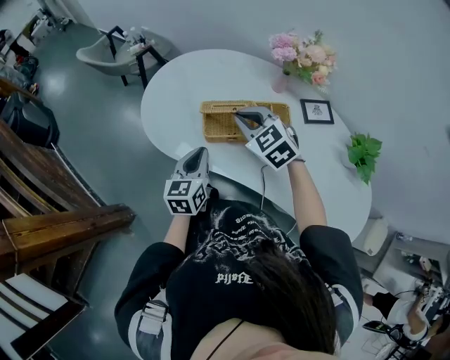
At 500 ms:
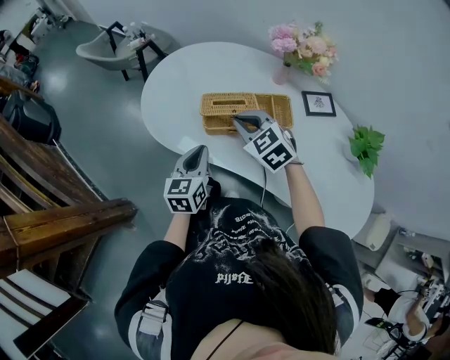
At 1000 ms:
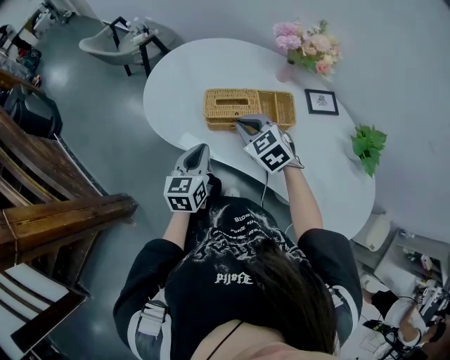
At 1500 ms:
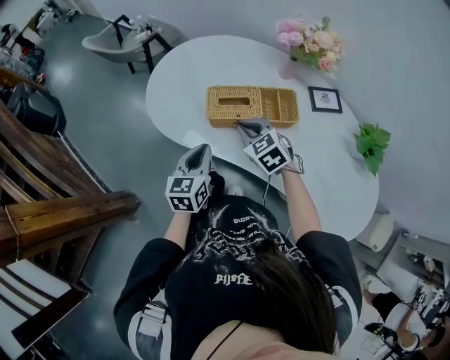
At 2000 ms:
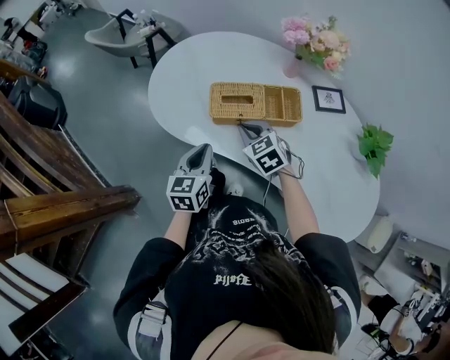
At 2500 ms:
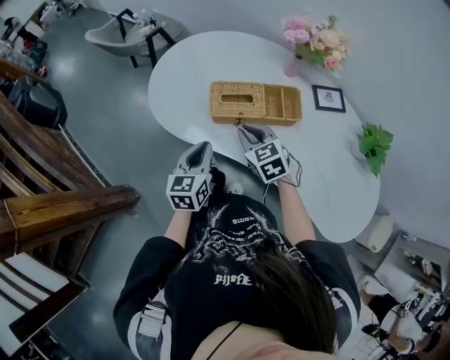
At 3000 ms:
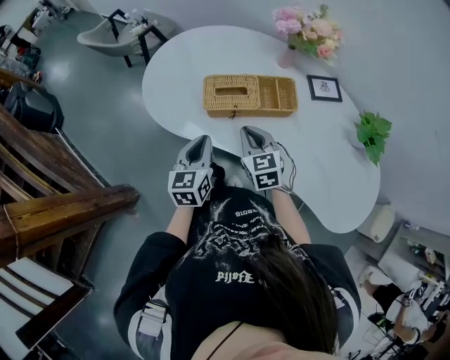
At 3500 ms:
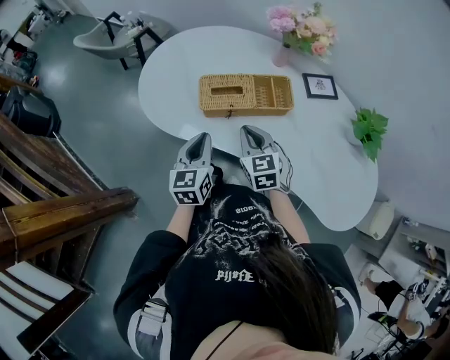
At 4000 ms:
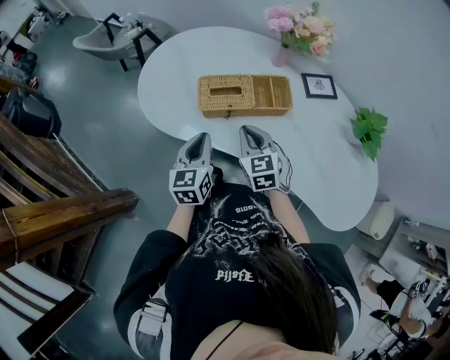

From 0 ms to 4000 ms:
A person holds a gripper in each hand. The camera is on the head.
From 0 ms to 2000 ms: The right gripper is displaced downward and backward by roughly 15 cm.
From 2000 ms to 4000 ms: The right gripper ends up approximately 5 cm from where it was, and rotates roughly 20 degrees.

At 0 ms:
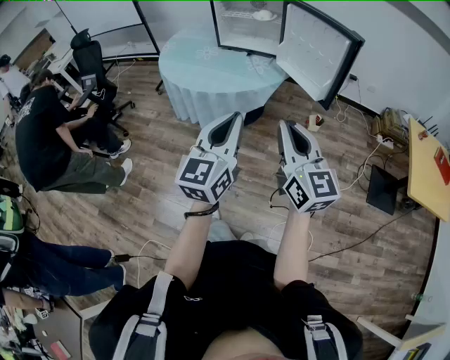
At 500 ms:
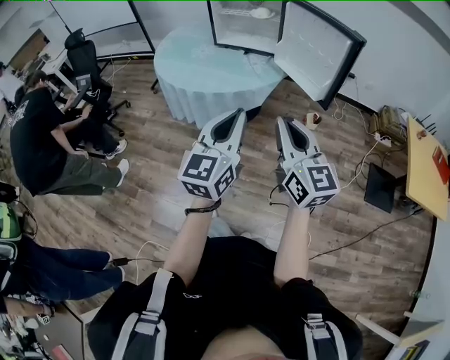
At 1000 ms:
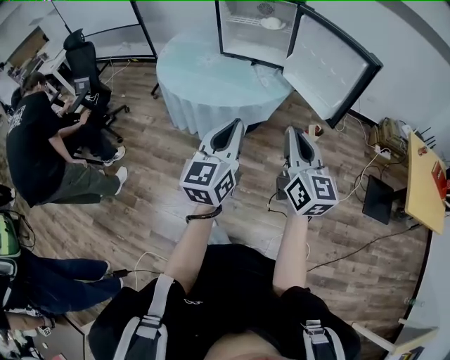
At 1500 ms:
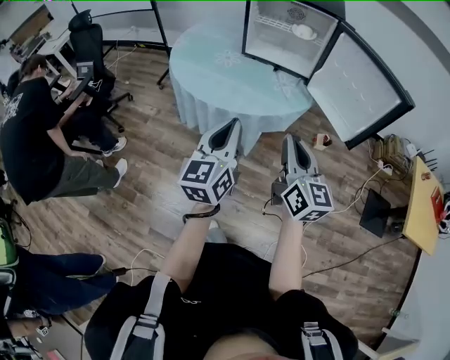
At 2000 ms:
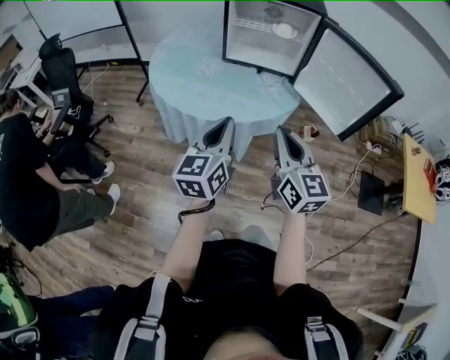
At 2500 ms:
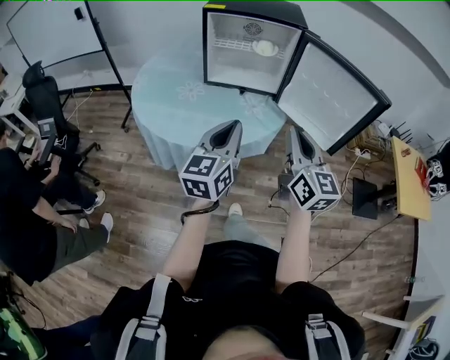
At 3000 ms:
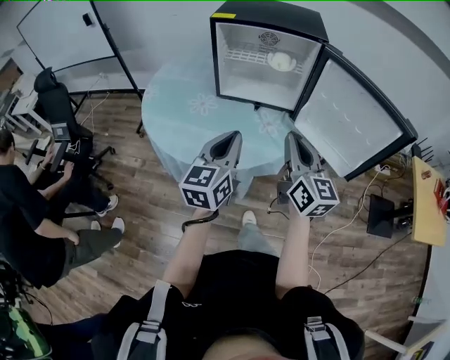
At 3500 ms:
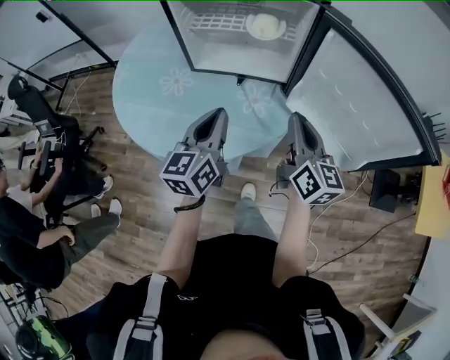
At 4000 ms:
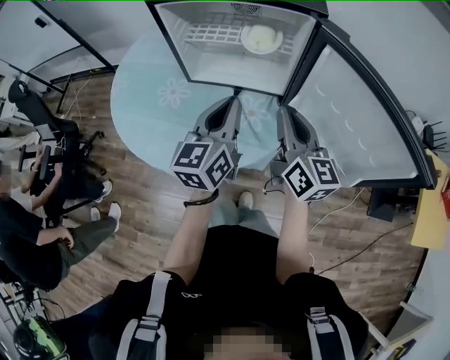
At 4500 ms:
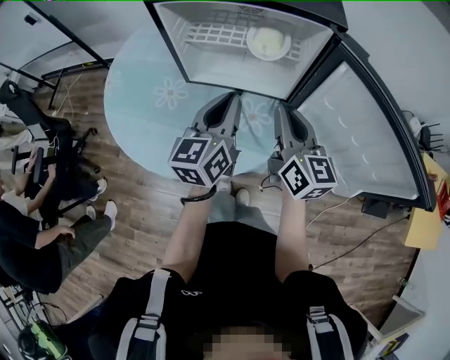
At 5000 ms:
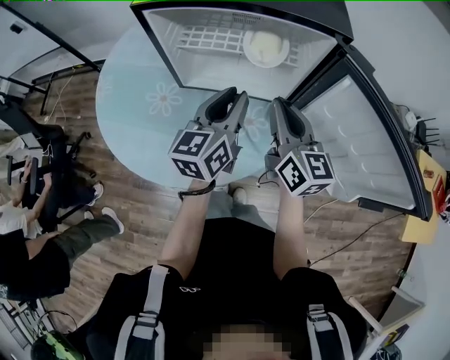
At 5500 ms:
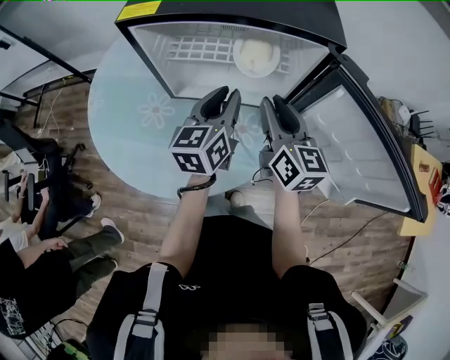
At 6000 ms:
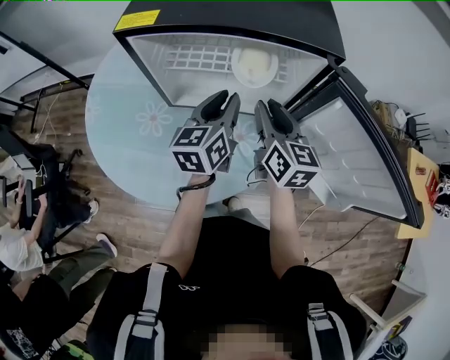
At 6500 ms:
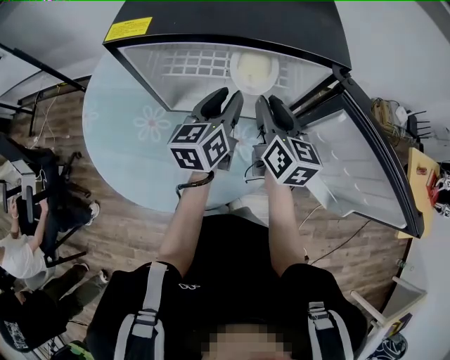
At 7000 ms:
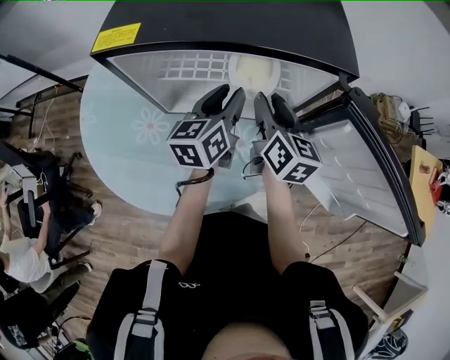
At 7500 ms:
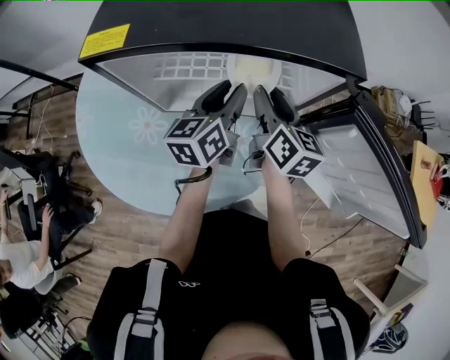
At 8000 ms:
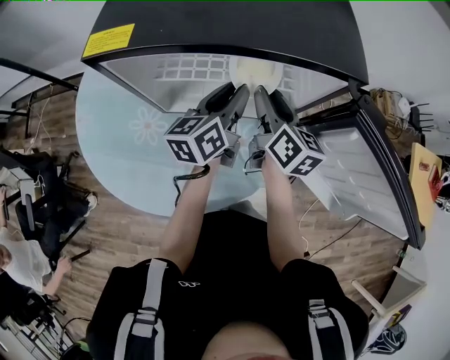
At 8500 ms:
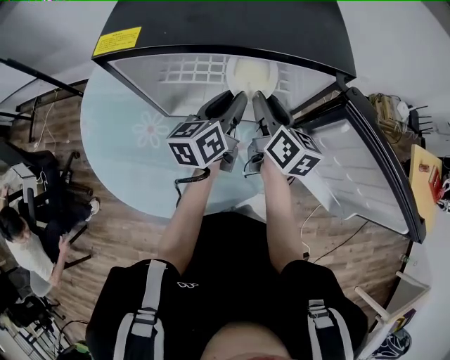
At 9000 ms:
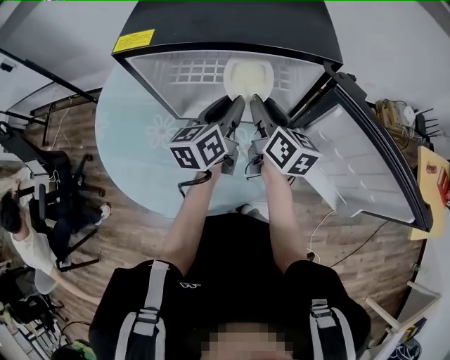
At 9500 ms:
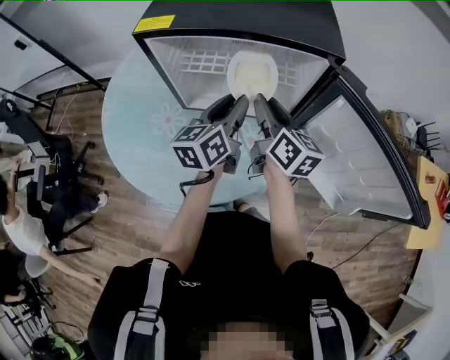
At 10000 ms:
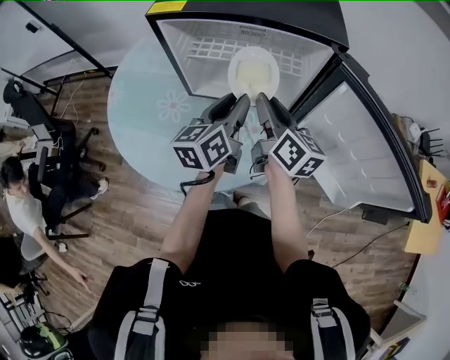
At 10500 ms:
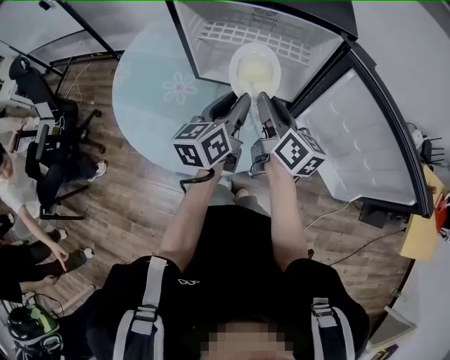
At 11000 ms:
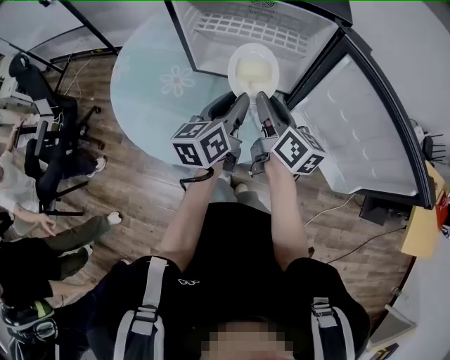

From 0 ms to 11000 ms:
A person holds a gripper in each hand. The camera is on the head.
From 0 ms to 2000 ms: The grippers both shift forward and to the left by some 30 cm.
From 2000 ms to 3500 ms: The right gripper goes about 35 cm forward and to the right. The left gripper goes approximately 30 cm forward.
From 3500 ms to 5500 ms: The two grippers go some 20 cm forward. The right gripper opens its fingers.
From 5500 ms to 7500 ms: The left gripper is displaced forward by about 10 cm; the right gripper shifts some 10 cm forward and downward.
From 7500 ms to 9000 ms: The grippers both shift backward by some 5 cm.
From 9000 ms to 11000 ms: The two grippers go about 15 cm backward.

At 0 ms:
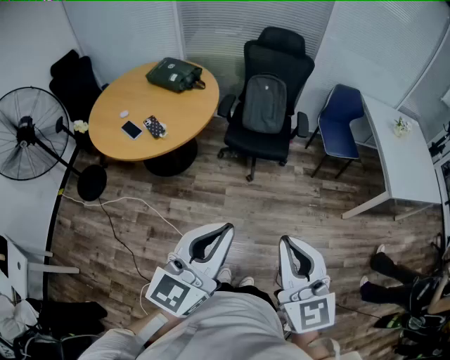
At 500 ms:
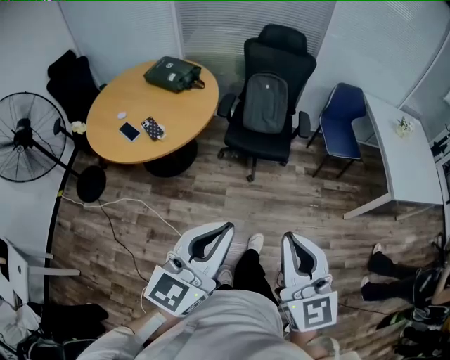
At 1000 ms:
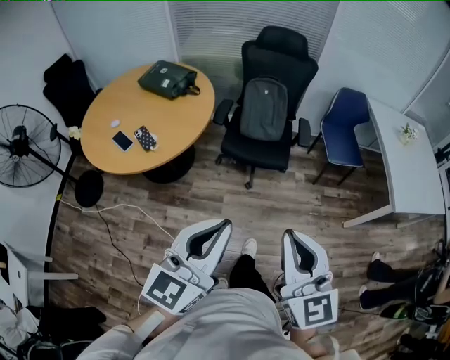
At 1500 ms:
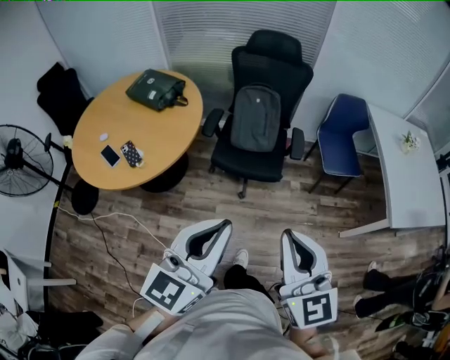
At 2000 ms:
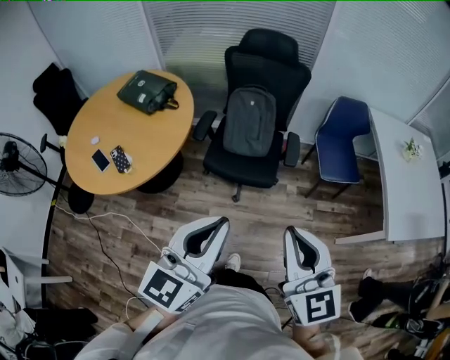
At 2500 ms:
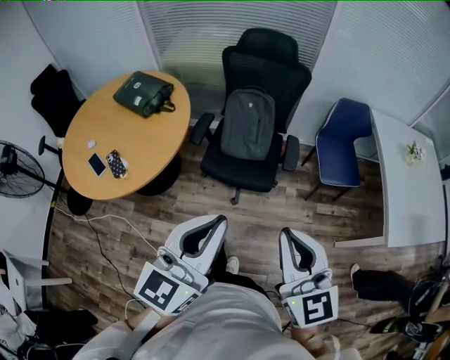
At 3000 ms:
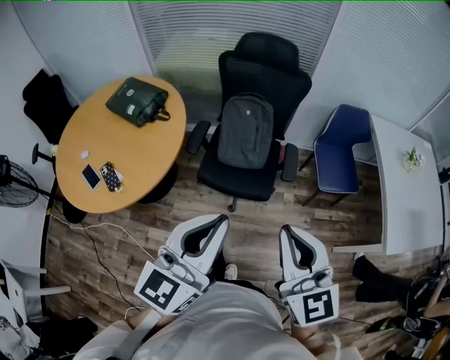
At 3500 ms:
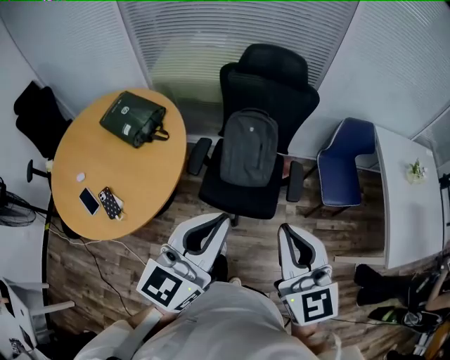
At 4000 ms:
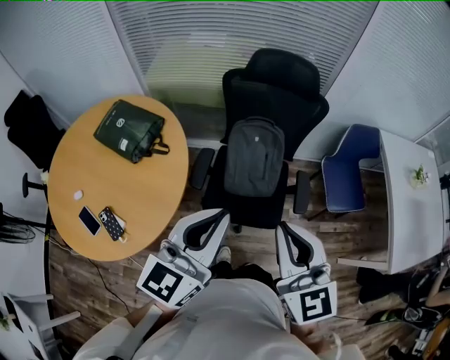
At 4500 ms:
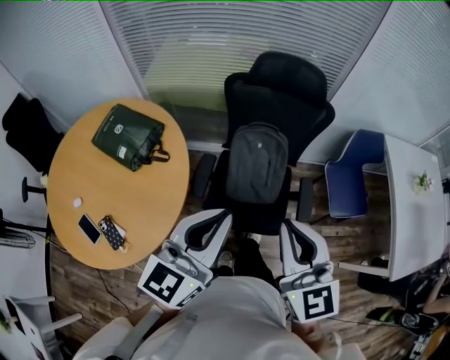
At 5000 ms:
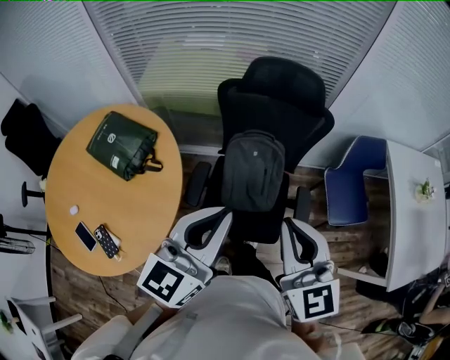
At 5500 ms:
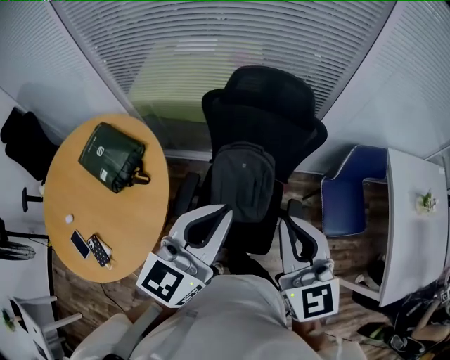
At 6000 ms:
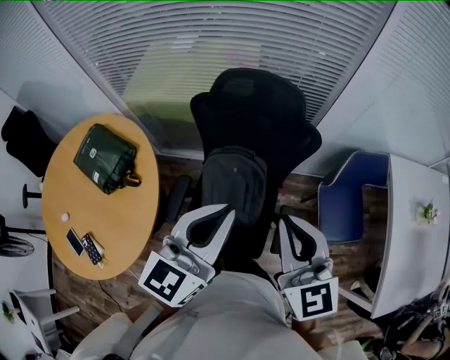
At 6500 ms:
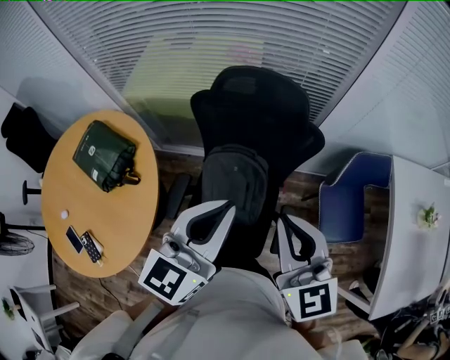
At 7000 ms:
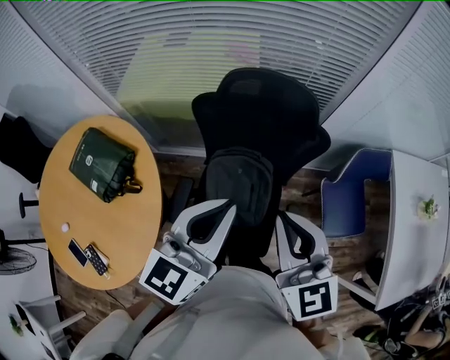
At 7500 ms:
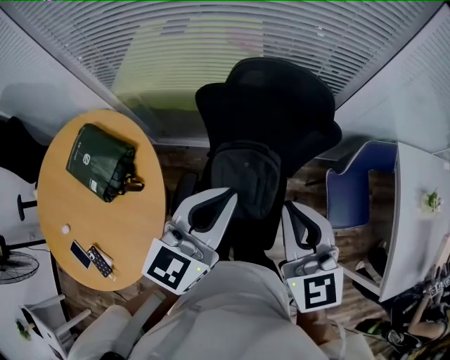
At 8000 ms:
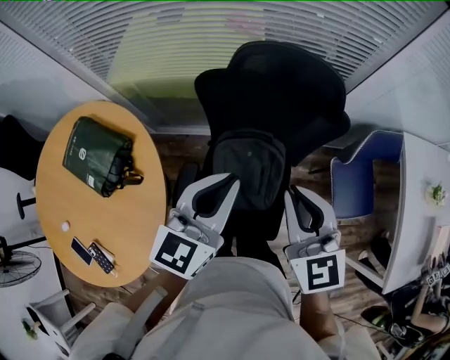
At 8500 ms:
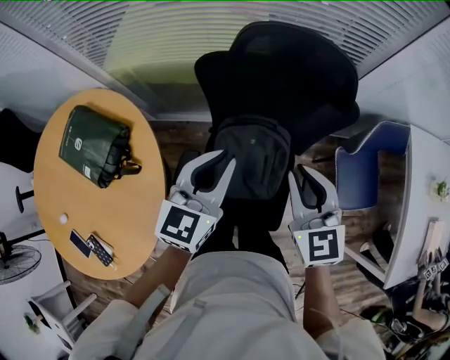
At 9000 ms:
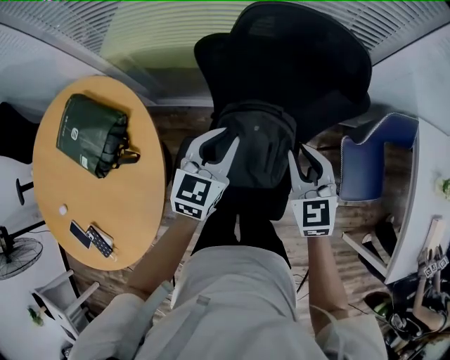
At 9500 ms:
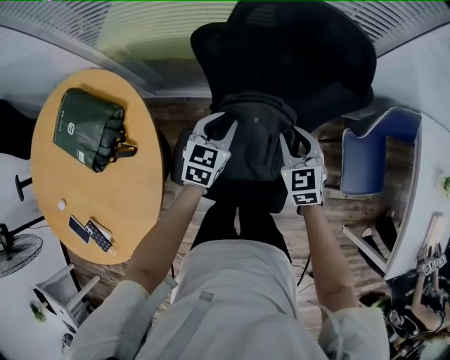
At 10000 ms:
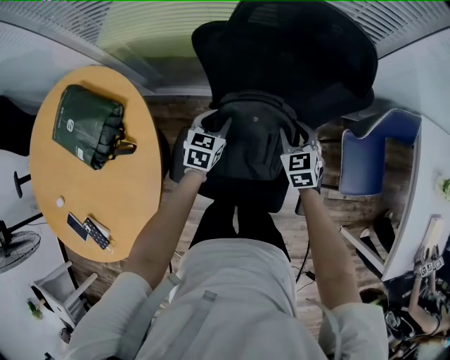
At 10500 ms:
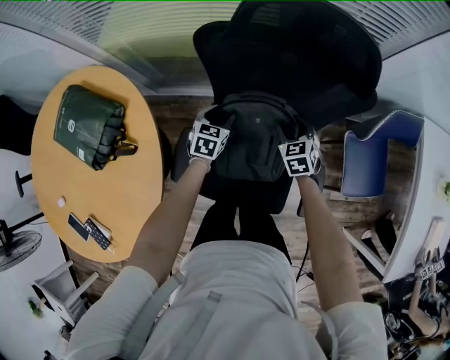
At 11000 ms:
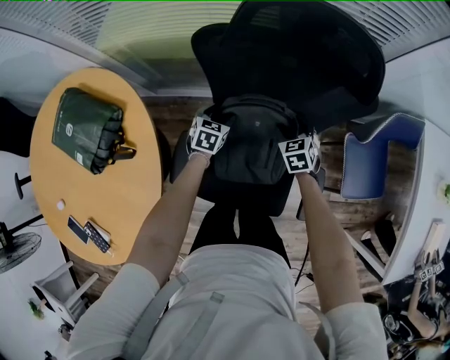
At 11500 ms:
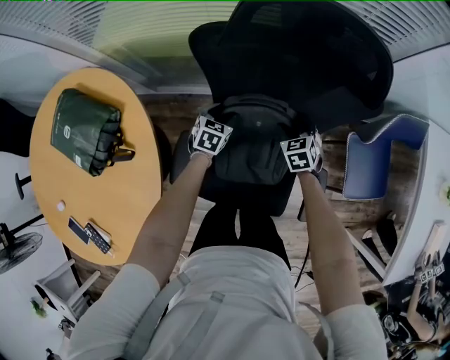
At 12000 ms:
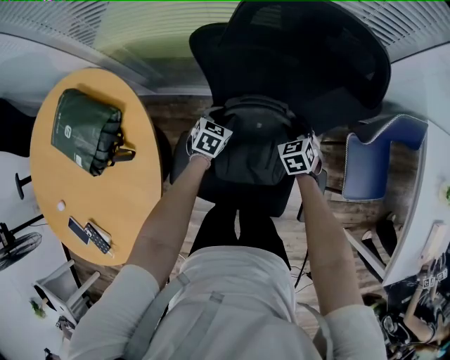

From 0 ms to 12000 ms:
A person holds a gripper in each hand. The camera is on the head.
From 0 ms to 2000 ms: The two grippers go roughly 35 cm forward and to the right.
From 2000 ms to 4000 ms: The right gripper is displaced forward and to the left by about 35 cm. The left gripper shifts about 30 cm forward.
From 4000 ms to 6000 ms: Both grippers travel together forward and to the right, approximately 30 cm.
From 6000 ms to 8000 ms: The right gripper is displaced to the left, forward and downward by about 15 cm. Meanwhile the left gripper moves downward, forward and to the left, about 15 cm.
From 8000 ms to 10000 ms: Both grippers travel together downward, roughly 30 cm. The right gripper rotates roughly 20 degrees, and opens its fingers, while the left gripper rotates some 30 degrees, and opens up.
From 10000 ms to 12000 ms: Both grippers move downward, approximately 10 cm. The left gripper opens, then closes once more, while the right gripper opens, then closes again.
